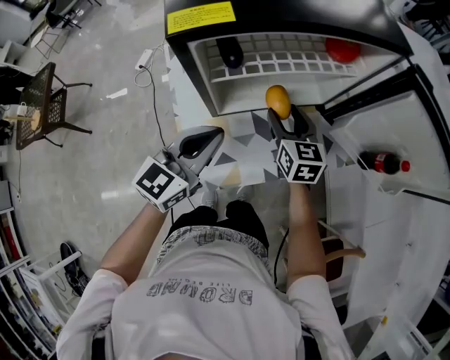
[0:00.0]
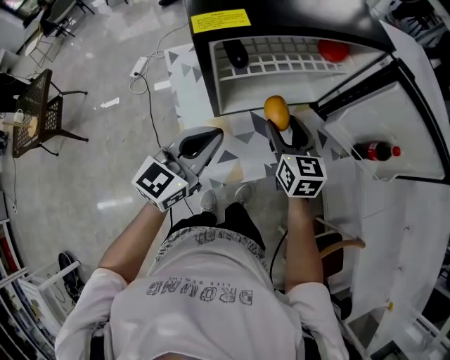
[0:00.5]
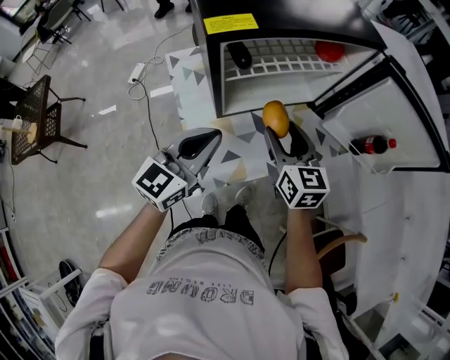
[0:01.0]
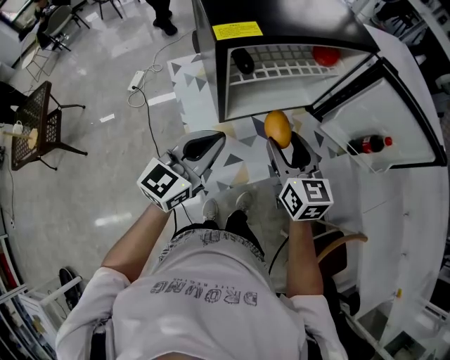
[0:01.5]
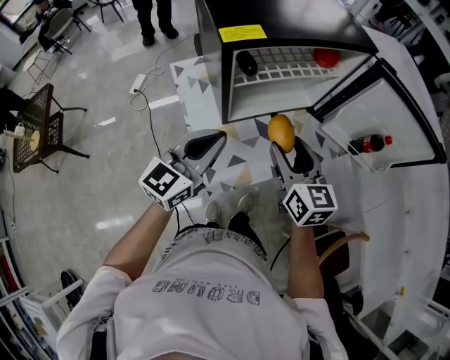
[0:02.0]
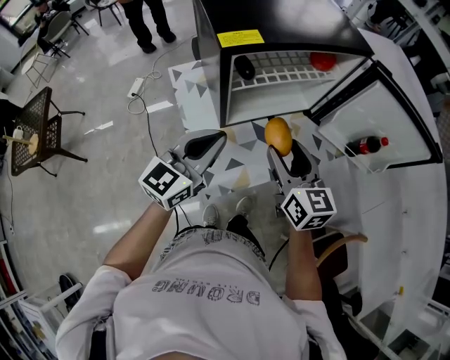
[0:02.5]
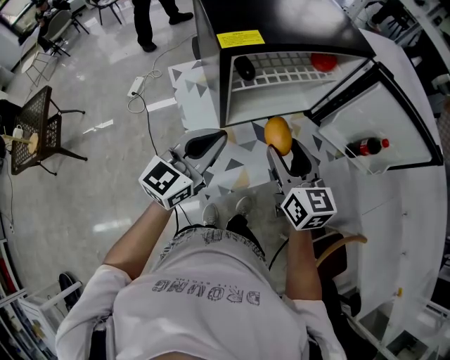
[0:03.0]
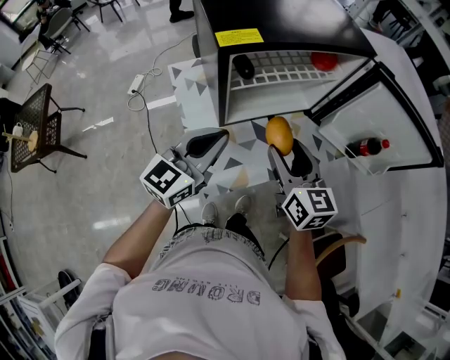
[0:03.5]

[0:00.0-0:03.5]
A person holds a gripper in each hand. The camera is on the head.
0:00.0 to 0:02.0: The left gripper travels upward and backward by roughly 10 cm. Meanwhile the right gripper is displaced backward and upward by roughly 20 cm.
0:02.0 to 0:03.5: The grippers move only a little.

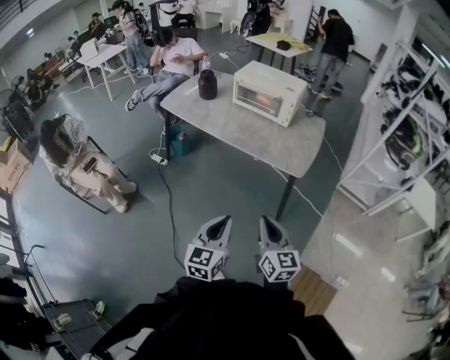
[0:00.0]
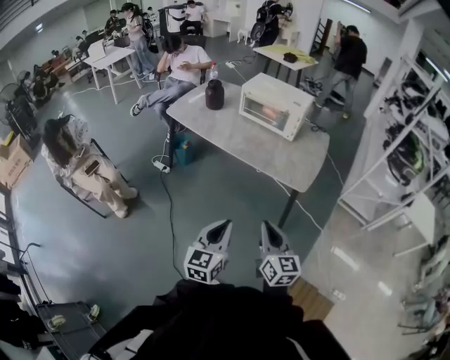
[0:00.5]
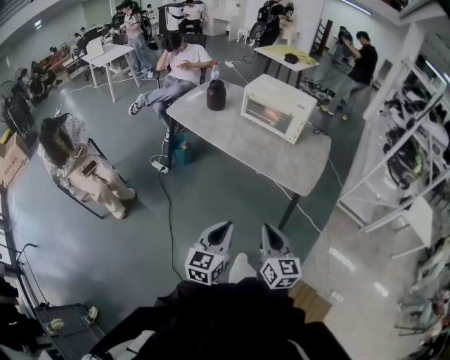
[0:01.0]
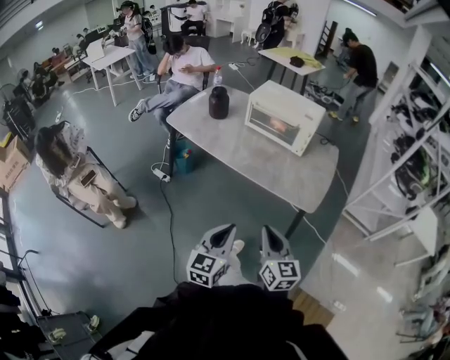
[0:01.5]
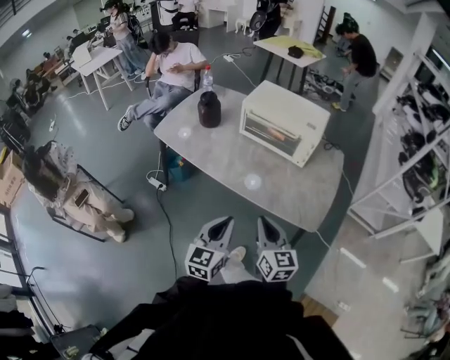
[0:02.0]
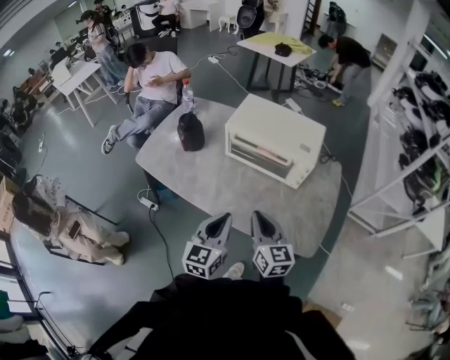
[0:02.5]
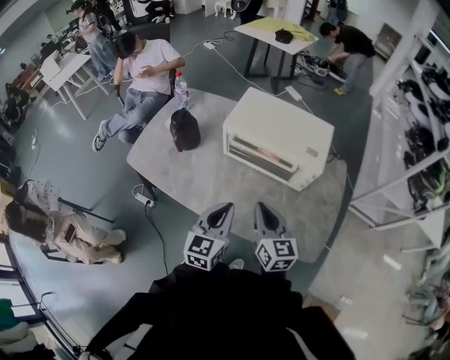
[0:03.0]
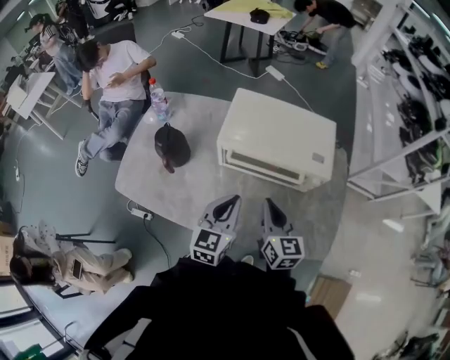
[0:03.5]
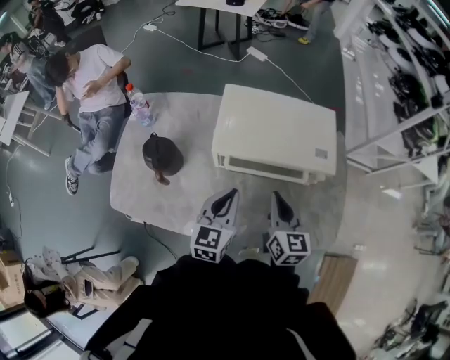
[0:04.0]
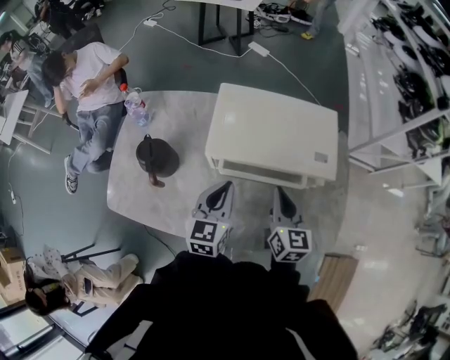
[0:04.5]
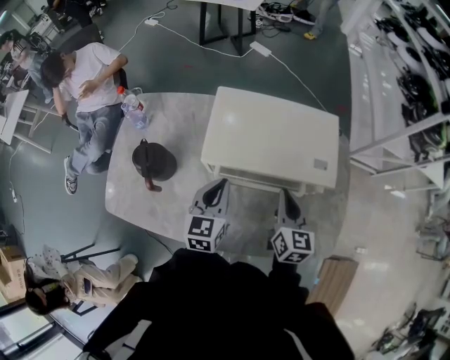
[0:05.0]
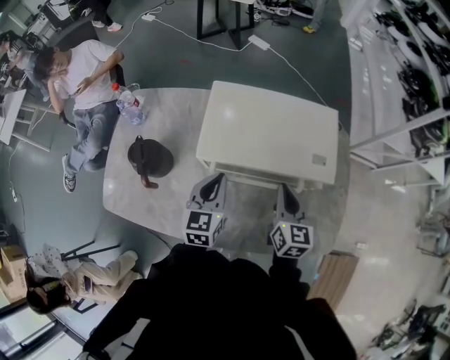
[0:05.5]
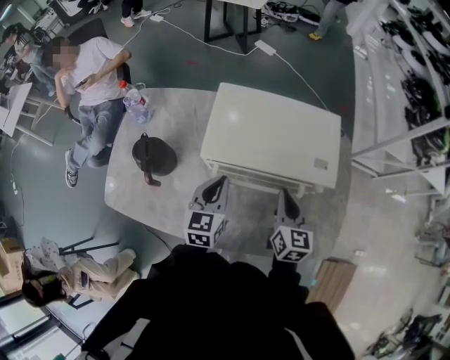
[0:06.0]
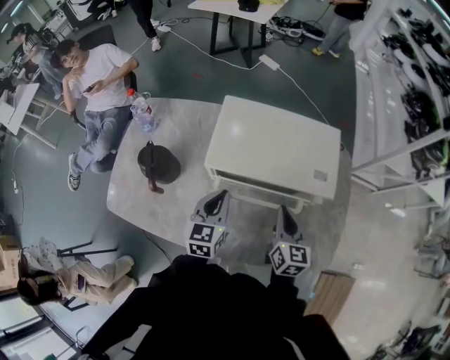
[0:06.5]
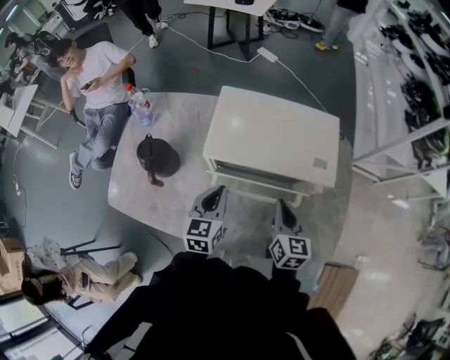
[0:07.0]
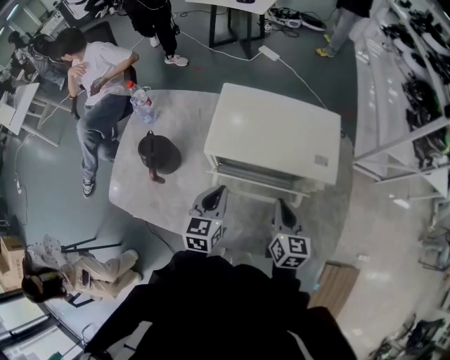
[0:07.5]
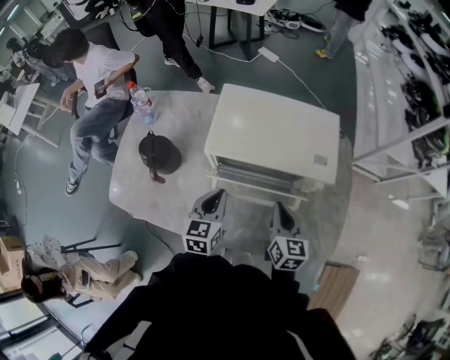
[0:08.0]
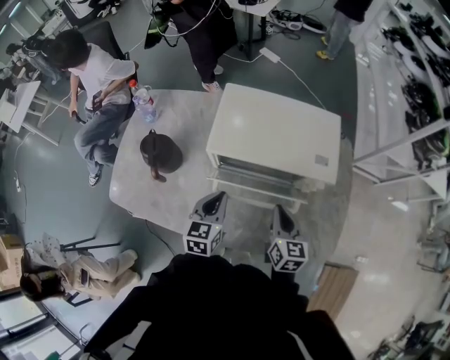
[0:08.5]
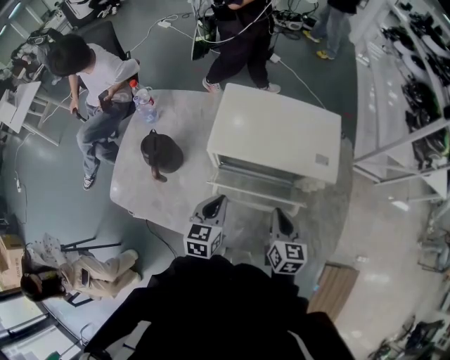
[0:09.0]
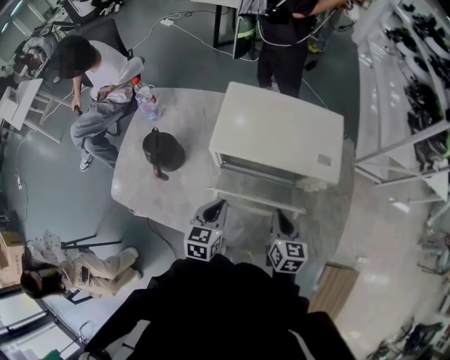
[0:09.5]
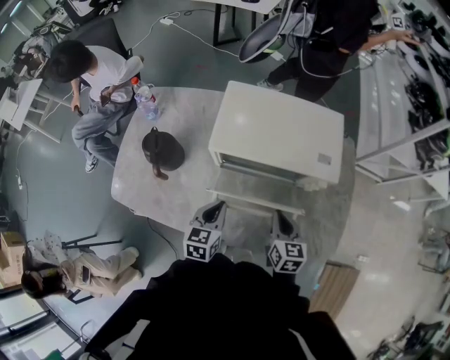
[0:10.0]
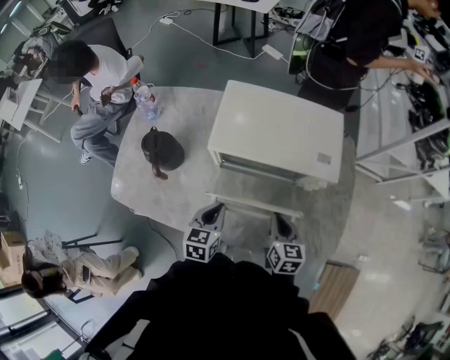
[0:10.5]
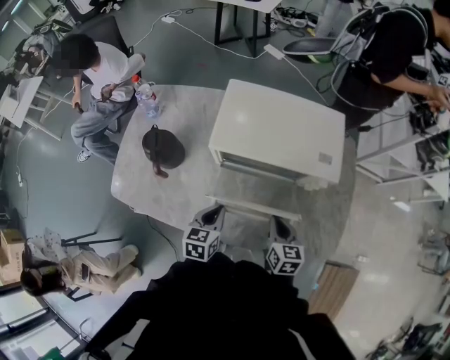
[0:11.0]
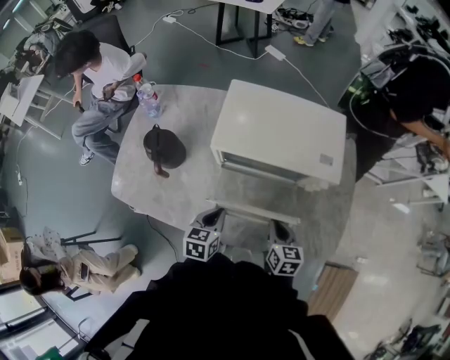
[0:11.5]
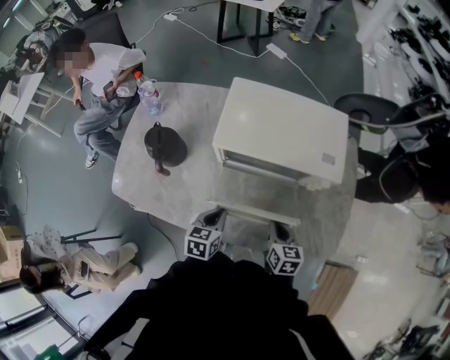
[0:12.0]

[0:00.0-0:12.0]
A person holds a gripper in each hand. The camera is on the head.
0:00.0 to 0:02.0: The two grippers go roughly 30 cm forward.
0:02.0 to 0:04.0: The grippers both shift forward by roughly 40 cm. The right gripper turns by some 30 degrees. Meanwhile the left gripper swivels roughly 20 degrees.
0:04.0 to 0:06.0: The right gripper is displaced forward and to the right by about 10 cm, while the left gripper heads forward, covering some 5 cm.
0:06.0 to 0:08.0: The grippers both shift backward by some 5 cm.
0:08.0 to 0:10.0: The right gripper changes place by roughly 5 cm; the left gripper ends up approximately 5 cm from where it was.
0:10.0 to 0:12.0: The left gripper ends up about 5 cm from where it was. Meanwhile the right gripper is displaced downward by about 5 cm.

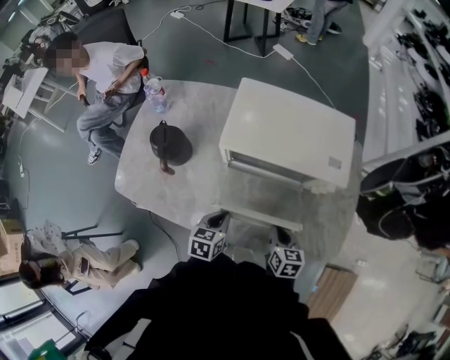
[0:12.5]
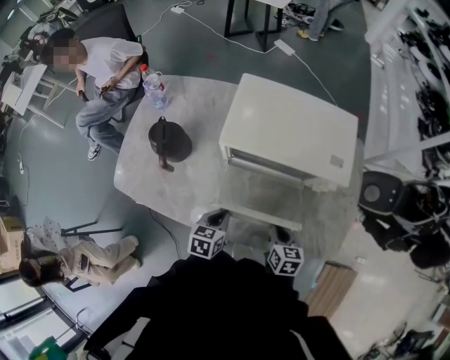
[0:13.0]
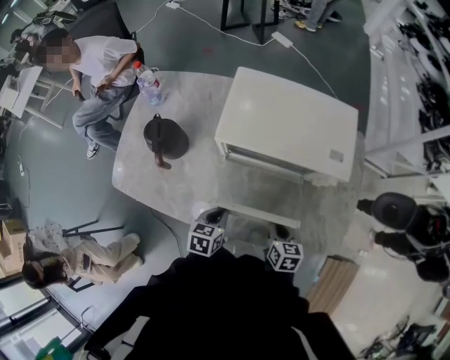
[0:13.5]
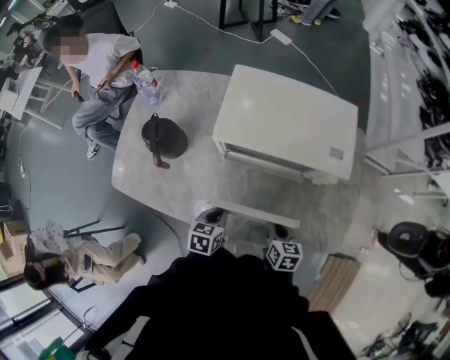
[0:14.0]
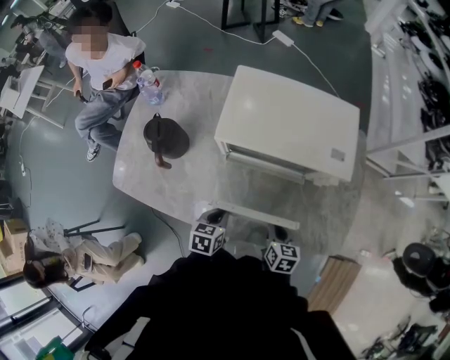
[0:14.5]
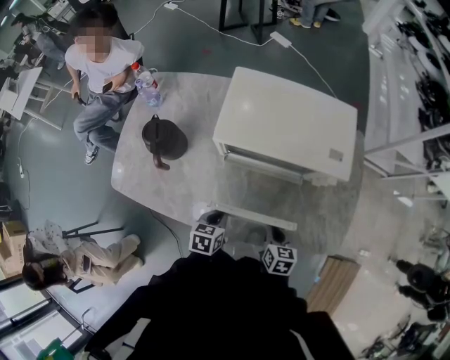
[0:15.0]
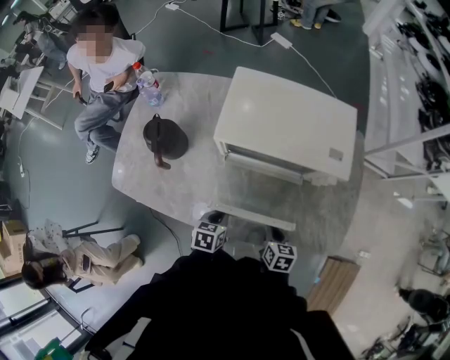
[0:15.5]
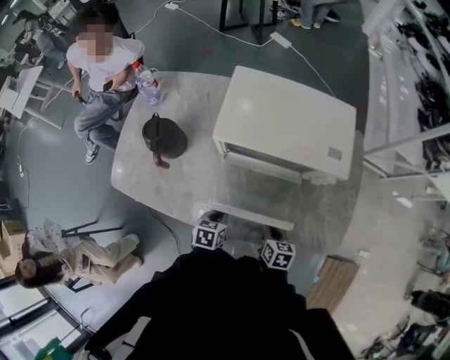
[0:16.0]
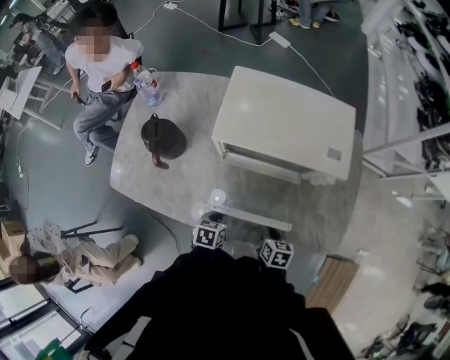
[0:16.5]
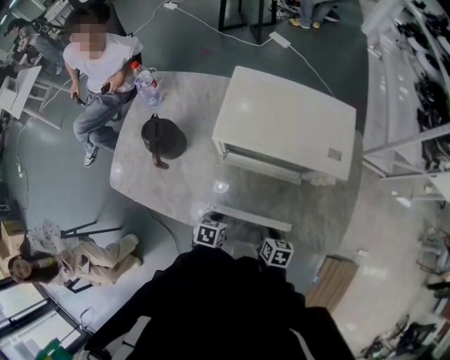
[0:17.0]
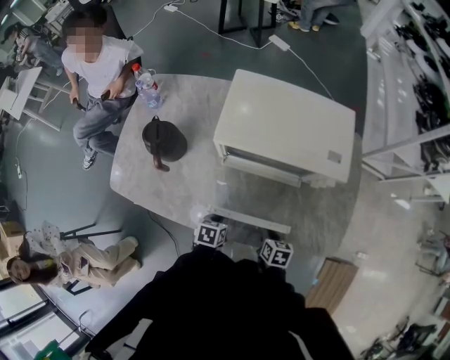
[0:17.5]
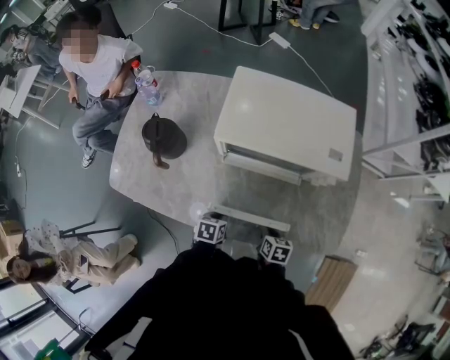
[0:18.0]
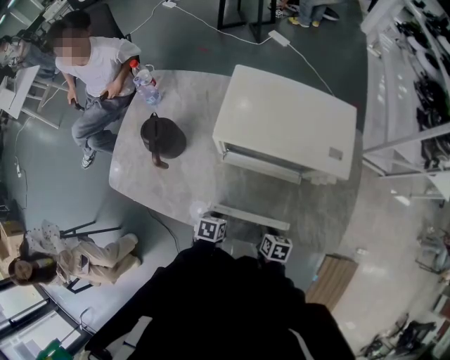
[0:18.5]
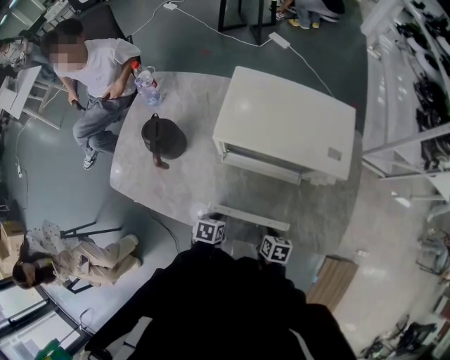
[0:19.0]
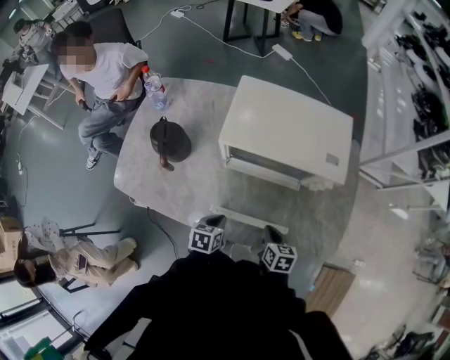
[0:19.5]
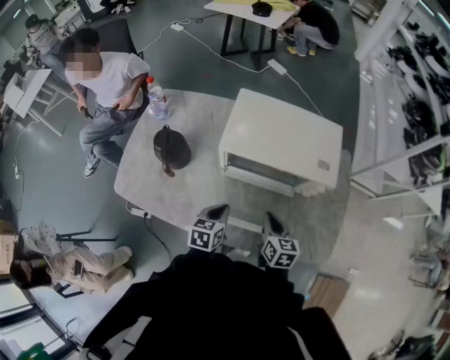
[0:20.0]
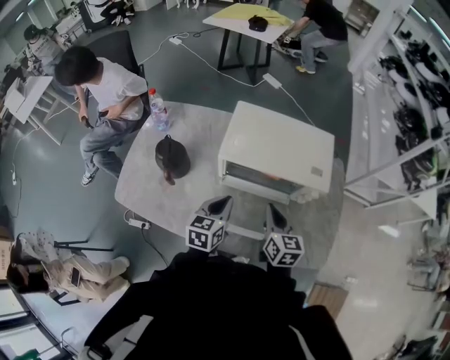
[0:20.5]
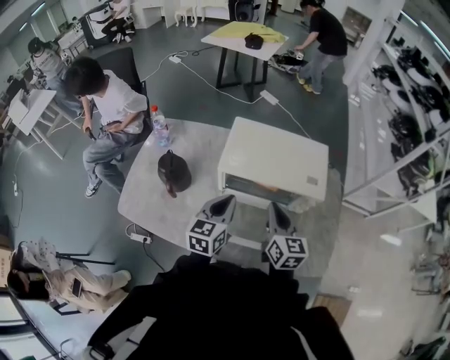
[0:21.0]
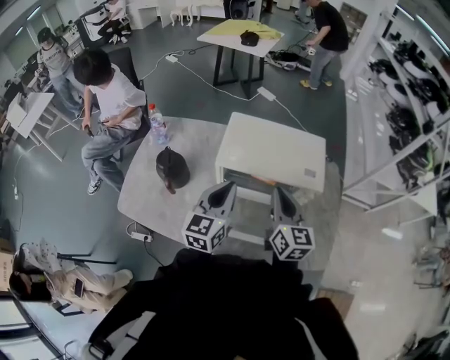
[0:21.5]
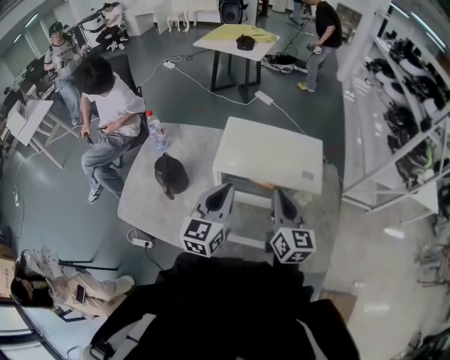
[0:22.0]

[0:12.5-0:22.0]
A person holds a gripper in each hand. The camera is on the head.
0:12.5 to 0:14.5: The grippers make only small movements.
0:14.5 to 0:16.5: The grippers both shift downward by about 5 cm.
0:16.5 to 0:18.0: The grippers stay close to where they were, moving slightly.
0:18.0 to 0:20.0: The two grippers go approximately 15 cm upward and forward. The right gripper rotates approximately 30 degrees, while the left gripper changes its angle by about 20 degrees.
0:20.0 to 0:22.0: Both grippers travel together upward, roughly 25 cm. The right gripper turns by roughly 30 degrees. The left gripper points its fingers approximately 40 degrees further upward.

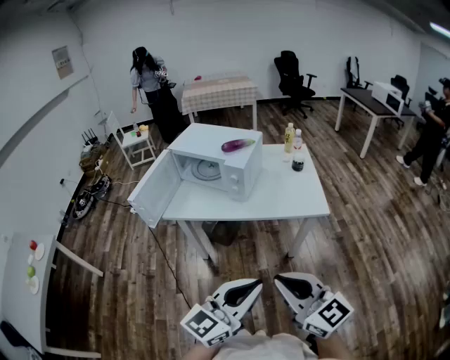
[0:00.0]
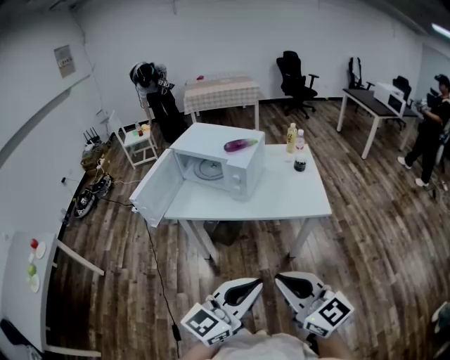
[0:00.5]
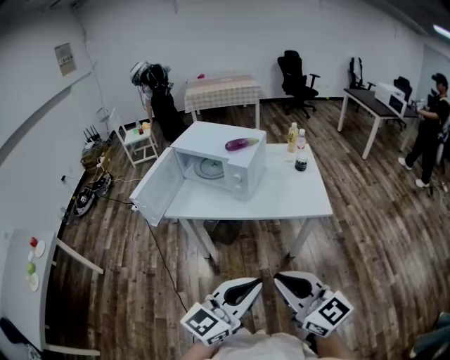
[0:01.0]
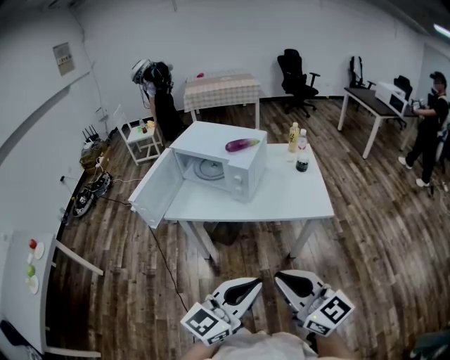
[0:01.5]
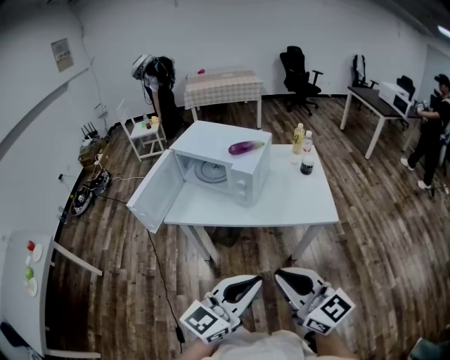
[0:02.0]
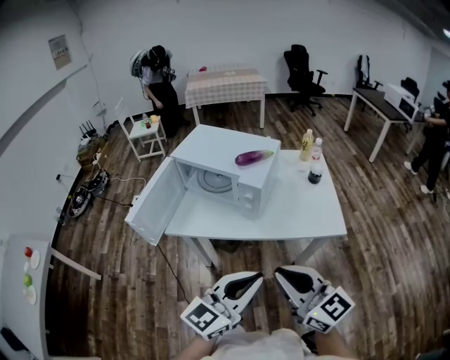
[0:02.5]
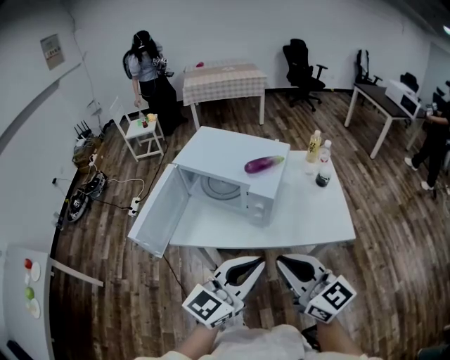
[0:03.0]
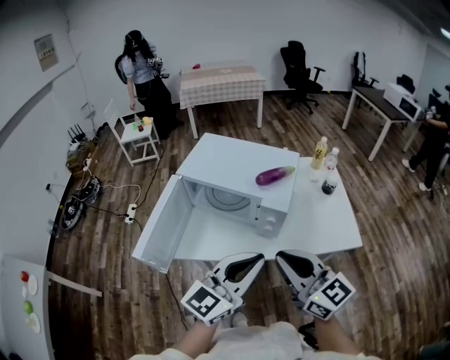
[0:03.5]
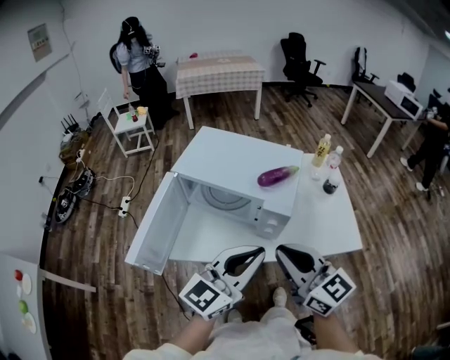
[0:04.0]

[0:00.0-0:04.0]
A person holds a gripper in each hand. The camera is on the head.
0:00.0 to 0:02.0: Both grippers move forward, about 5 cm.
0:02.0 to 0:04.0: The two grippers go roughly 30 cm forward and to the left.
